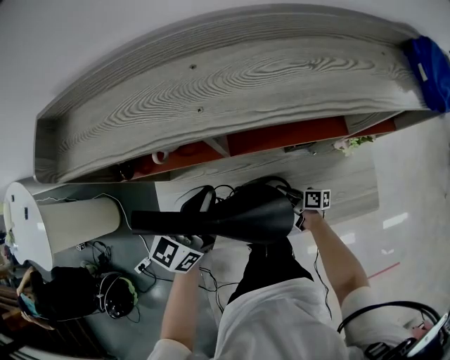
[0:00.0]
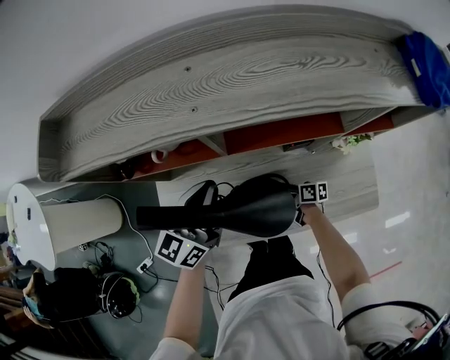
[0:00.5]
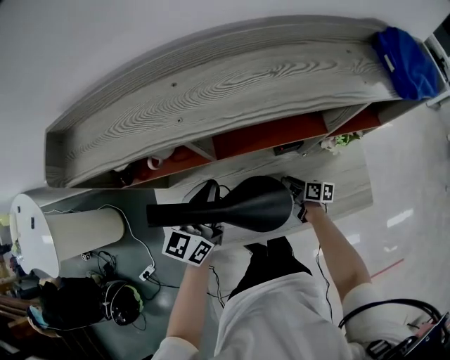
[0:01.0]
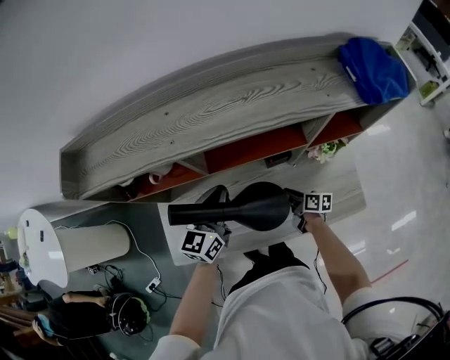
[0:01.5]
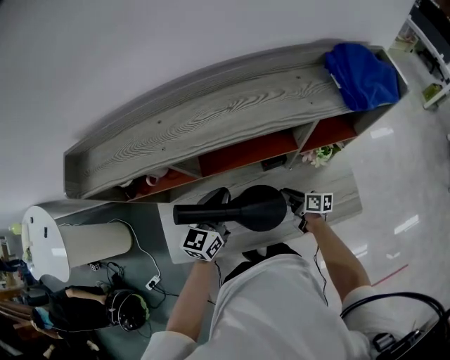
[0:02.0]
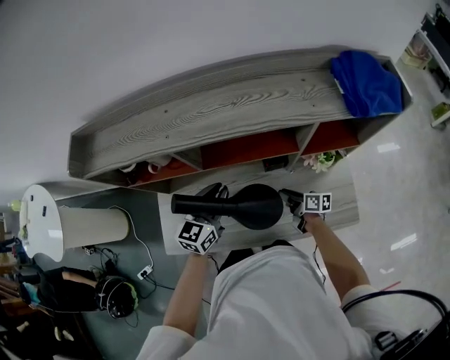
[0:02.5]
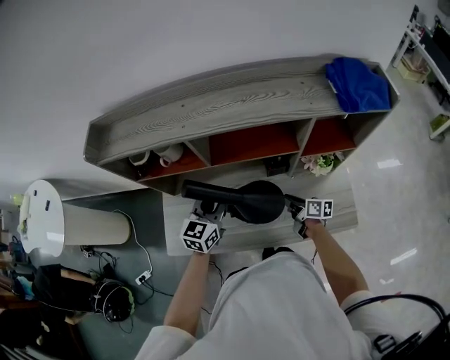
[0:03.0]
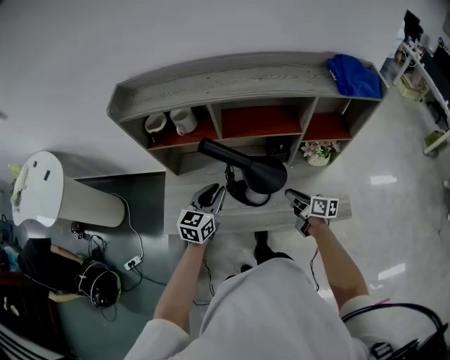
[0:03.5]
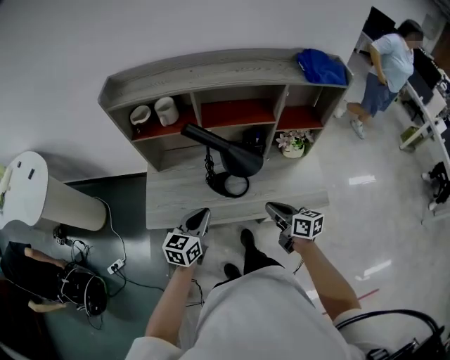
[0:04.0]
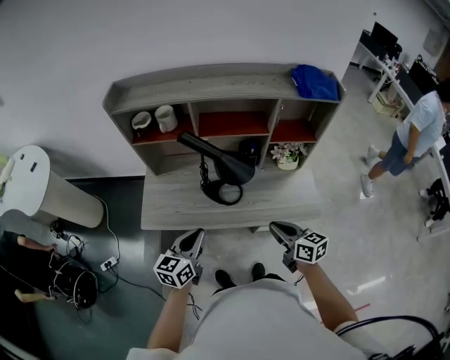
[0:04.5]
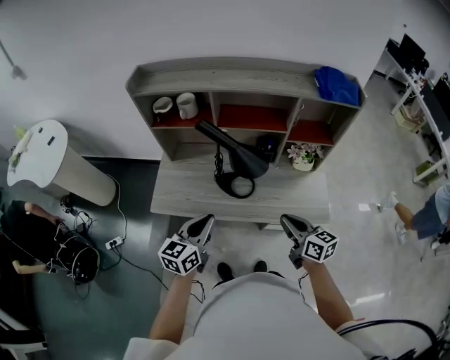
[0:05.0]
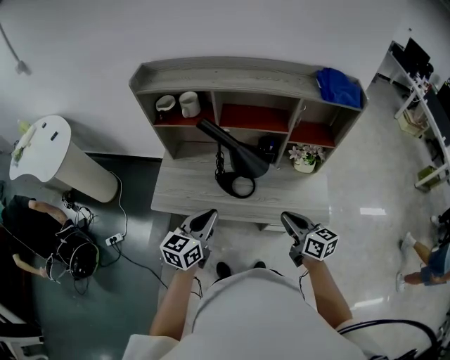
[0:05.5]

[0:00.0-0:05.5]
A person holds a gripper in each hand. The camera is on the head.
0:00.0 to 0:02.0: The left gripper shifts approximately 10 cm to the right, while the right gripper is displaced to the right and upward by some 15 cm, and opens up.
0:02.0 to 0:03.5: The left gripper goes roughly 15 cm backward and to the left, while the right gripper moves upward and backward, roughly 15 cm.
0:03.5 to 0:05.5: The left gripper travels backward by about 20 cm. Meanwhile the right gripper moves backward and upward, about 20 cm, and turns by approximately 20 degrees.

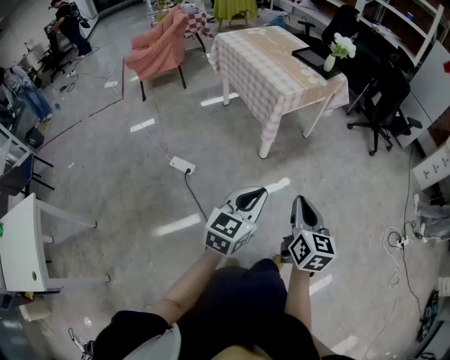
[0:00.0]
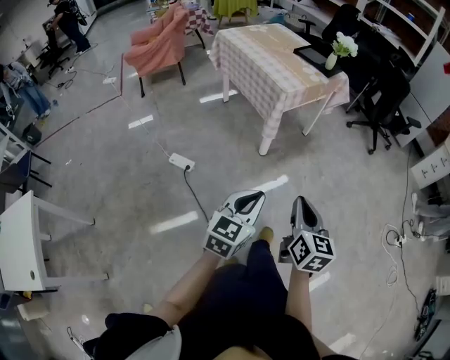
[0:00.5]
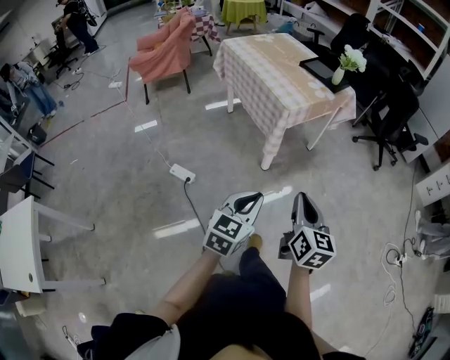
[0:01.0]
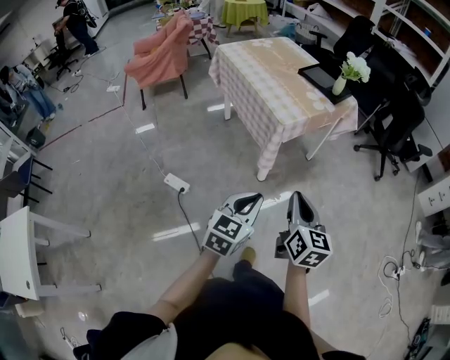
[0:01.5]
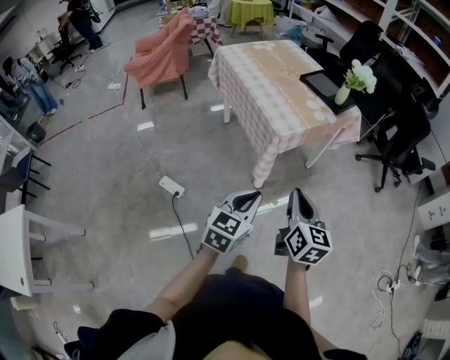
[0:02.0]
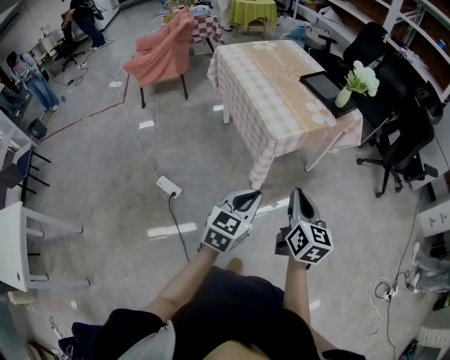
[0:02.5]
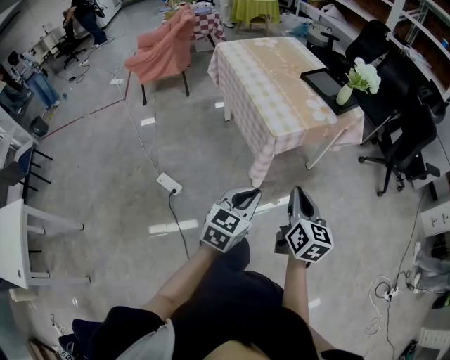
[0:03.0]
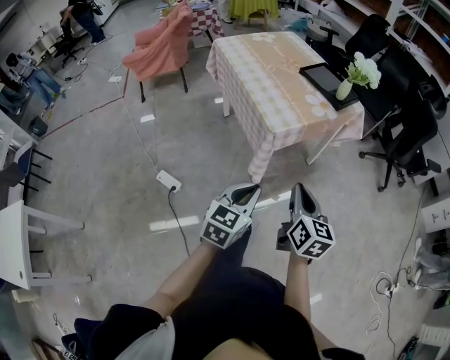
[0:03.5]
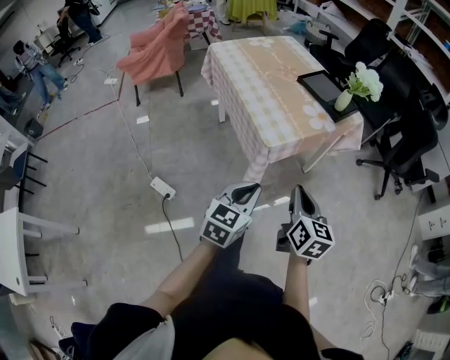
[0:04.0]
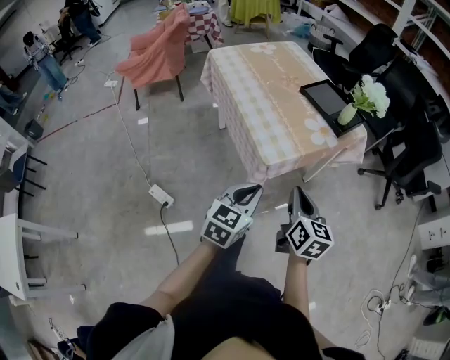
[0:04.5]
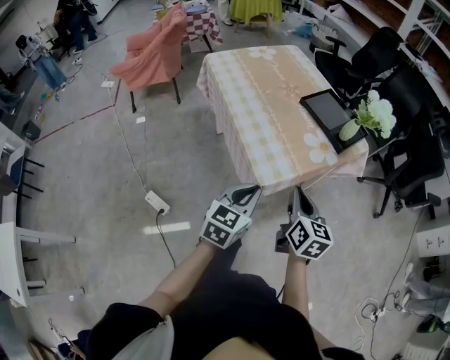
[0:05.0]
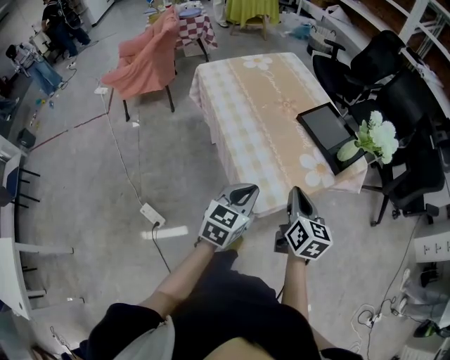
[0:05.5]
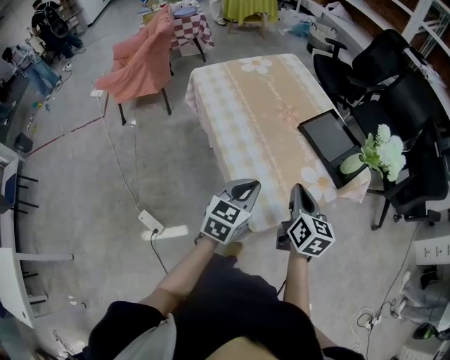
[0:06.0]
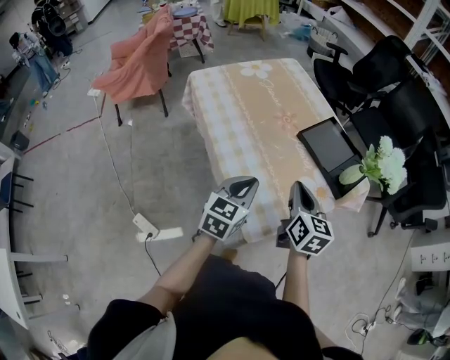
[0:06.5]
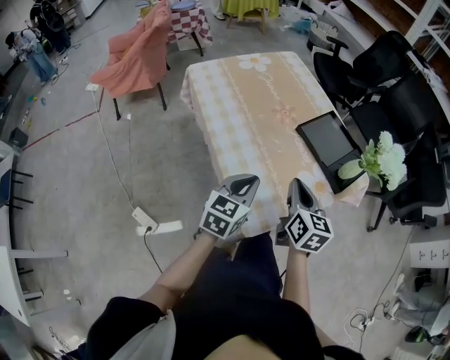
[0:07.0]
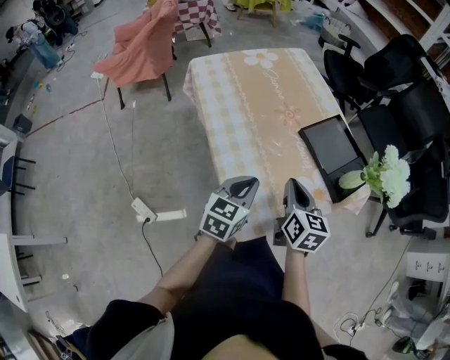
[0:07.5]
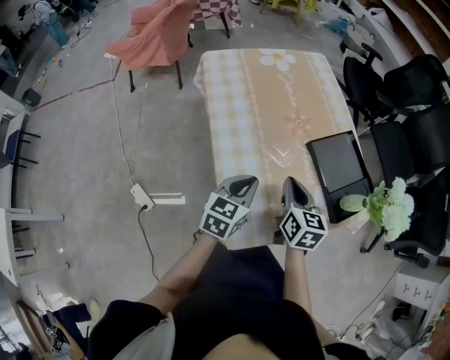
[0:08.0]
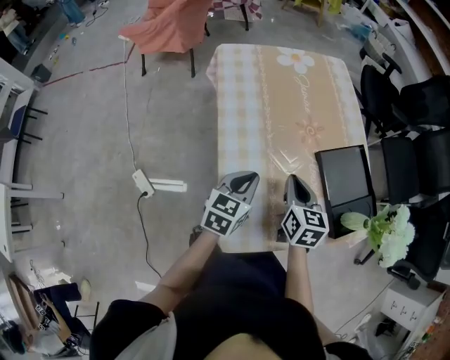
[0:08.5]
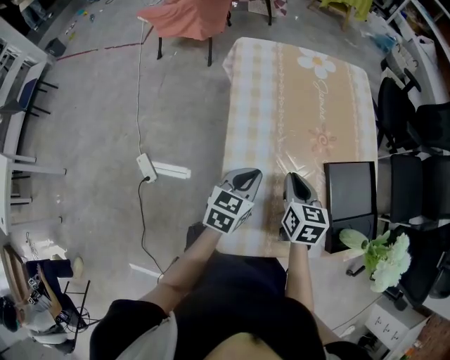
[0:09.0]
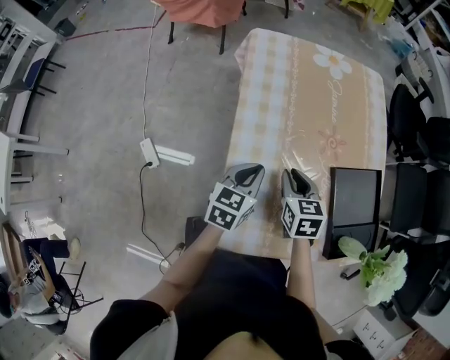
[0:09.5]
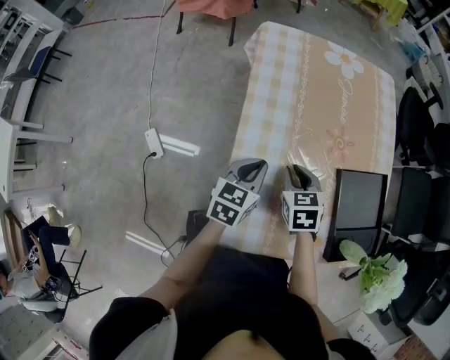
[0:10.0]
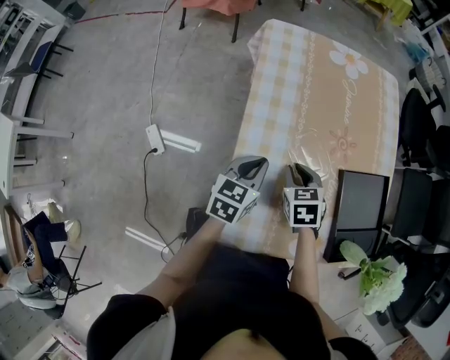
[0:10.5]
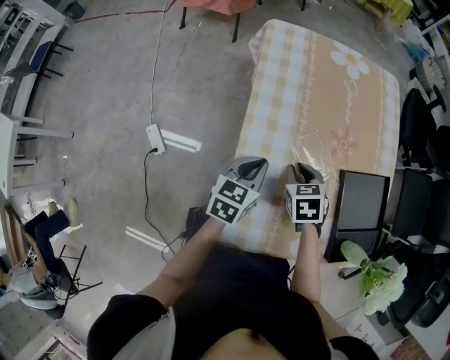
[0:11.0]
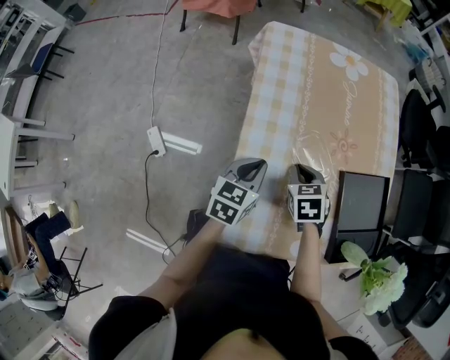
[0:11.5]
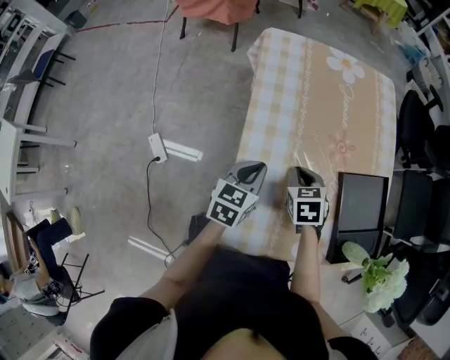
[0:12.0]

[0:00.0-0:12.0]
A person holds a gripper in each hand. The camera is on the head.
0:00.0 to 0:02.0: The grippers both shift forward by roughly 30 cm.
0:02.0 to 0:04.0: Both grippers move forward, approximately 10 cm.
0:04.0 to 0:06.0: The grippers both shift forward by roughly 35 cm.
0:06.0 to 0:08.0: Both grippers travel together forward, about 10 cm.
0:08.0 to 0:10.0: The left gripper heads forward, covering approximately 5 cm, and swivels some 20 degrees. Meanwhile the right gripper heads downward, forward and to the left, covering approximately 15 cm, and turns by about 40 degrees.
0:10.0 to 0:12.0: The grippers make only small movements.

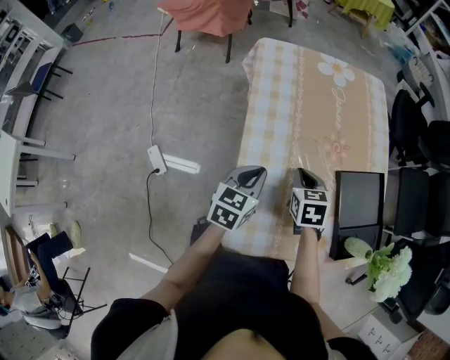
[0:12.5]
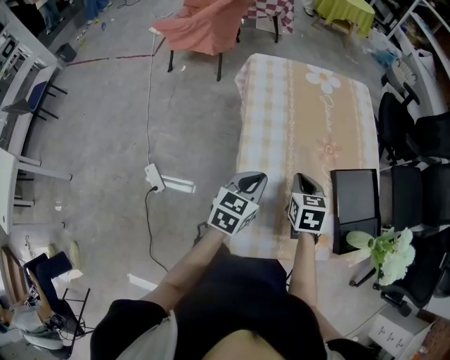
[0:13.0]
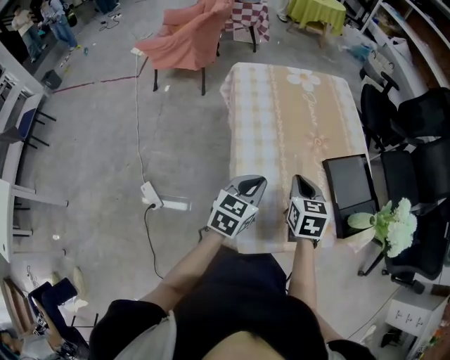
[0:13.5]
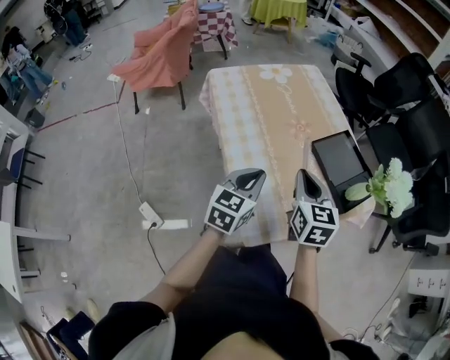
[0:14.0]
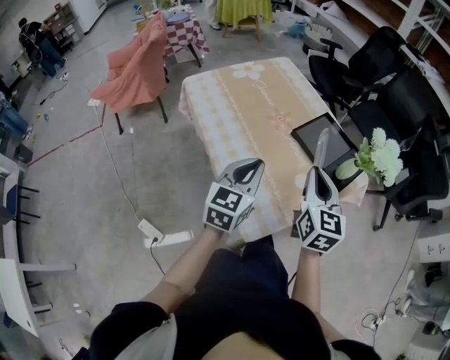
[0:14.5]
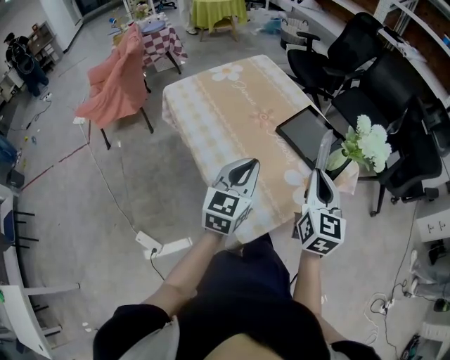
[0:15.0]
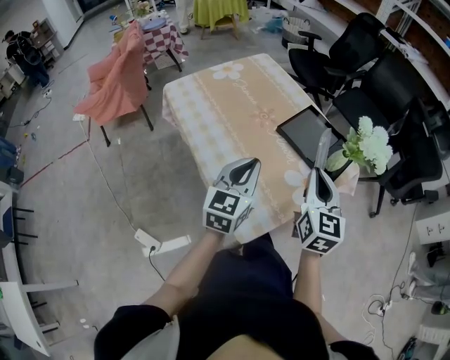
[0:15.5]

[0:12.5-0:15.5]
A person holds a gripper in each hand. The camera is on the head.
0:12.5 to 0:14.0: The right gripper travels upward and backward by some 20 cm, and turns by roughly 40 degrees. The left gripper goes roughly 10 cm upward and backward, and turns by some 30 degrees.
0:14.0 to 0:15.5: The left gripper travels to the right by about 5 cm. The right gripper heads to the right, covering approximately 10 cm, and rotates about 30 degrees.

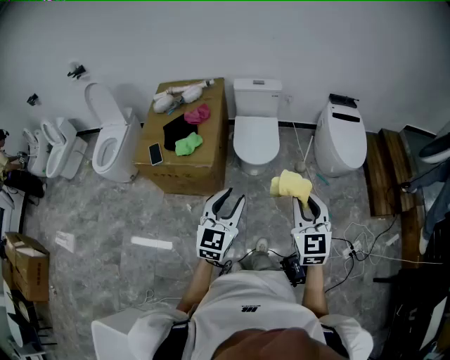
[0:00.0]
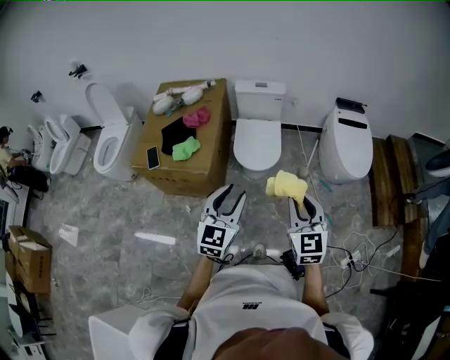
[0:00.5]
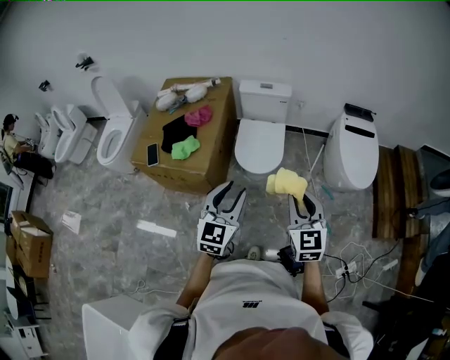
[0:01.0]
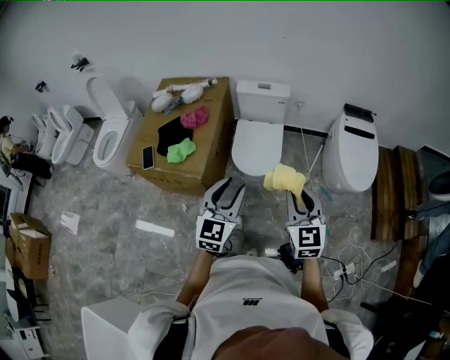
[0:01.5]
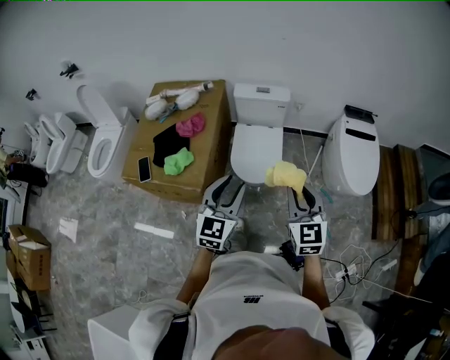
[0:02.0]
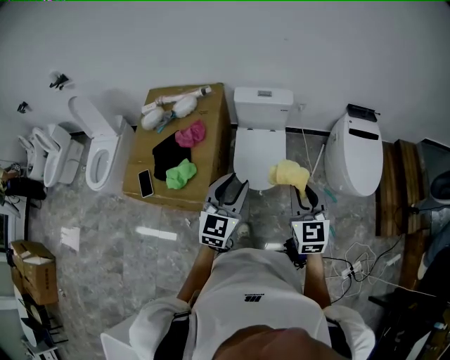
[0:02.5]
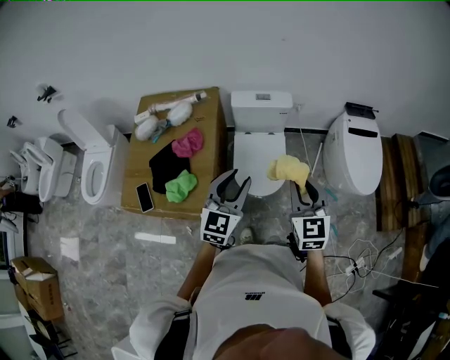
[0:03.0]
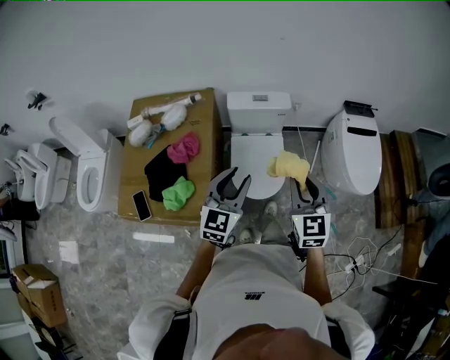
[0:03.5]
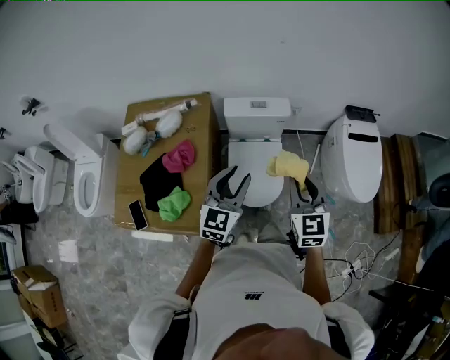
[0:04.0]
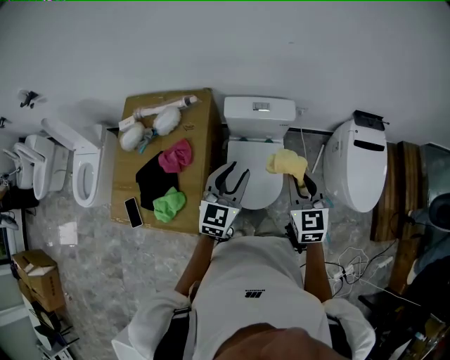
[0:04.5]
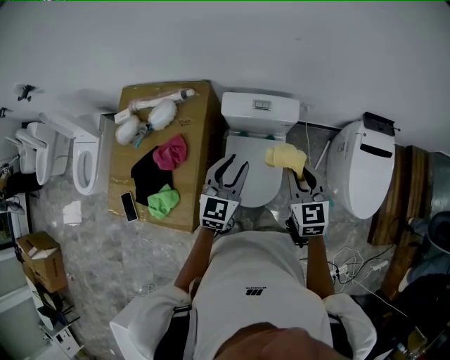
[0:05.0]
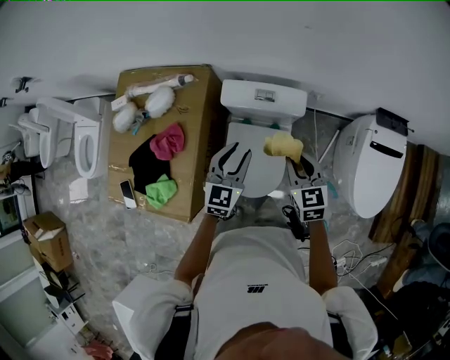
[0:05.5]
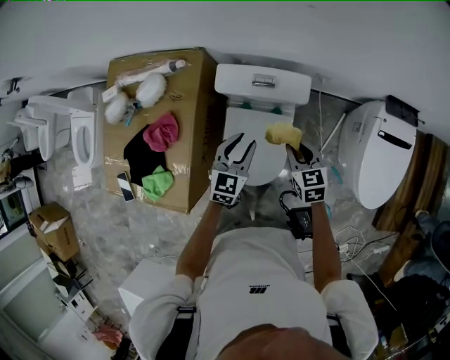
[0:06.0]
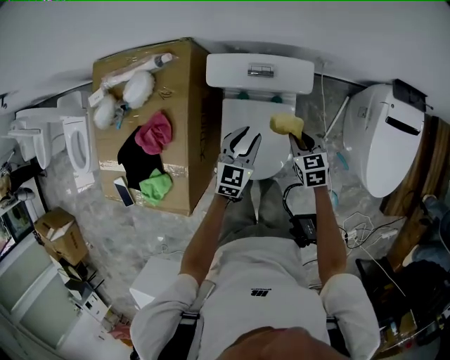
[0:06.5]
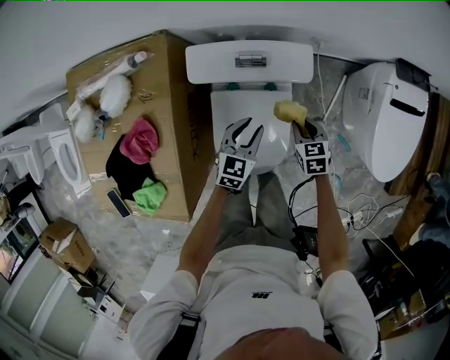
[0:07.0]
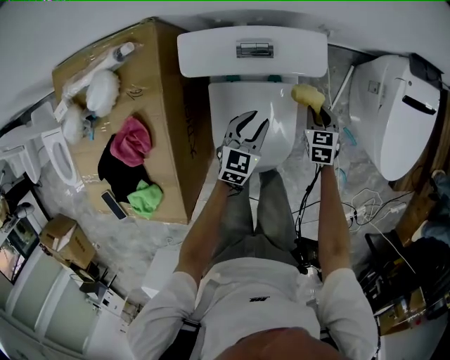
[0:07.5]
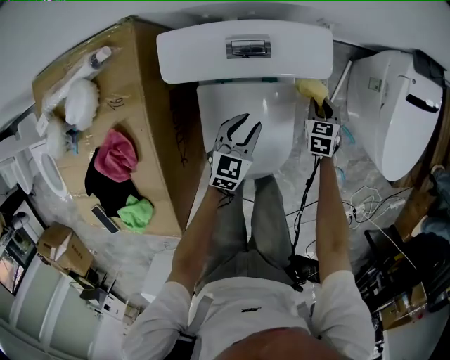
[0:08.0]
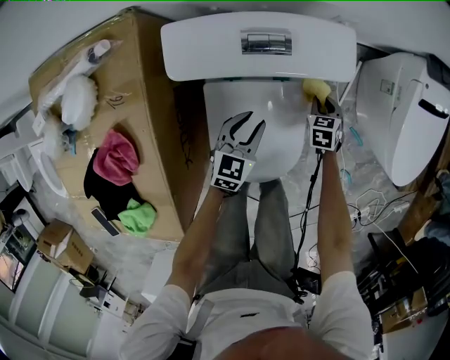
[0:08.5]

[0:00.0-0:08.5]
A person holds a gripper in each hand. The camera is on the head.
0:00.0 to 0:02.0: The two grippers go approximately 30 cm forward.
0:02.0 to 0:04.0: The grippers both shift forward by approximately 25 cm.
0:04.0 to 0:06.5: Both grippers move downward and forward, roughly 40 cm. The right gripper tilts its fingers approximately 30 degrees downward. The left gripper changes its angle by roughly 20 degrees.
0:06.5 to 0:08.5: Both grippers travel together downward, approximately 25 cm. The right gripper changes its angle by roughly 30 degrees.
